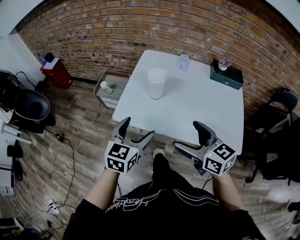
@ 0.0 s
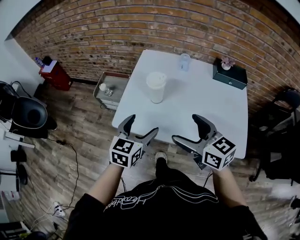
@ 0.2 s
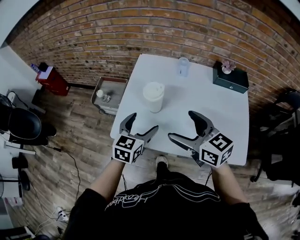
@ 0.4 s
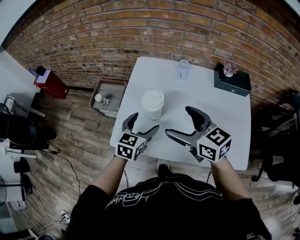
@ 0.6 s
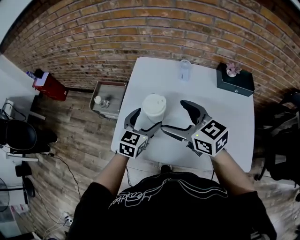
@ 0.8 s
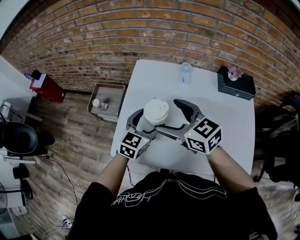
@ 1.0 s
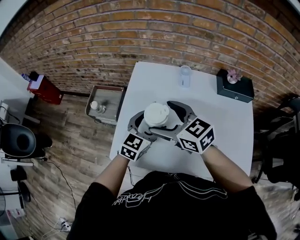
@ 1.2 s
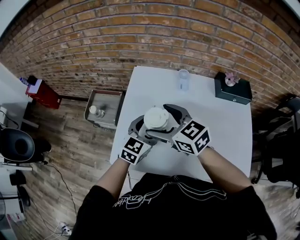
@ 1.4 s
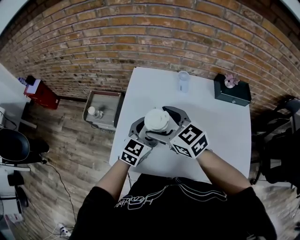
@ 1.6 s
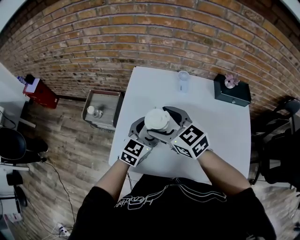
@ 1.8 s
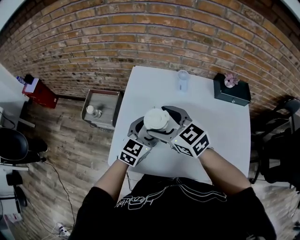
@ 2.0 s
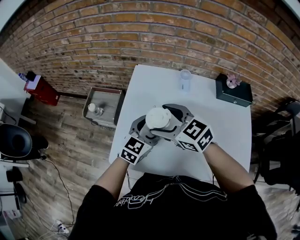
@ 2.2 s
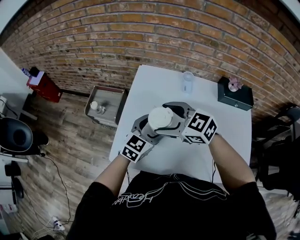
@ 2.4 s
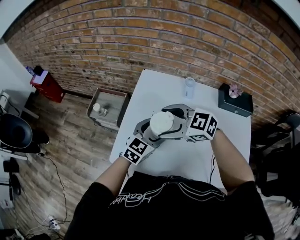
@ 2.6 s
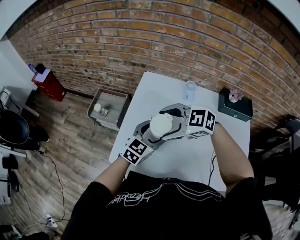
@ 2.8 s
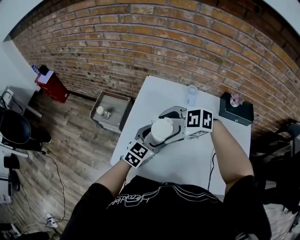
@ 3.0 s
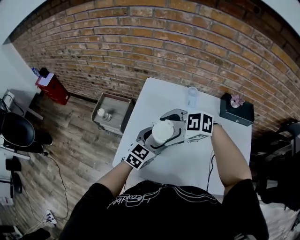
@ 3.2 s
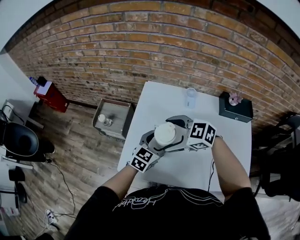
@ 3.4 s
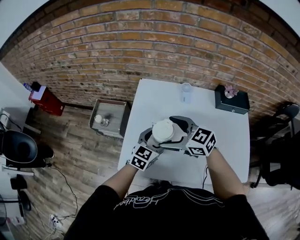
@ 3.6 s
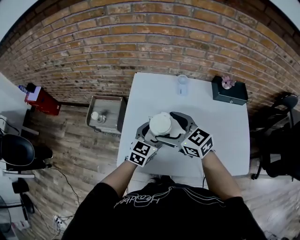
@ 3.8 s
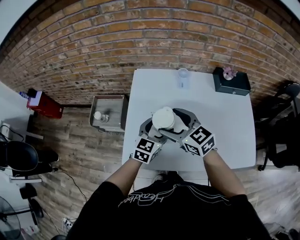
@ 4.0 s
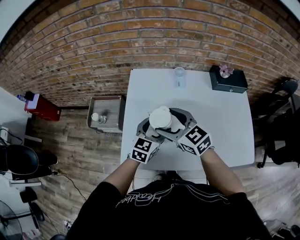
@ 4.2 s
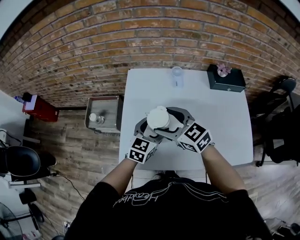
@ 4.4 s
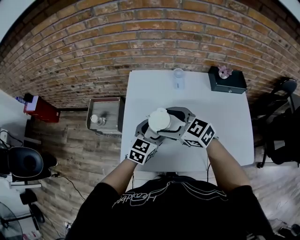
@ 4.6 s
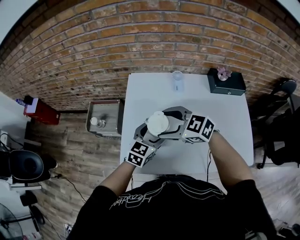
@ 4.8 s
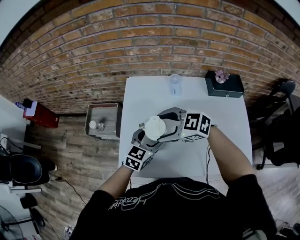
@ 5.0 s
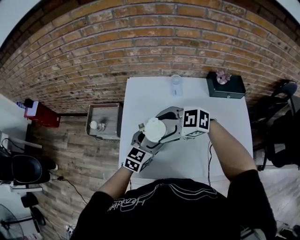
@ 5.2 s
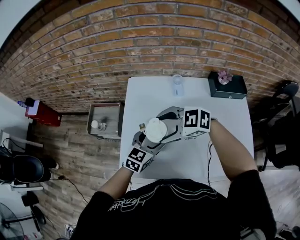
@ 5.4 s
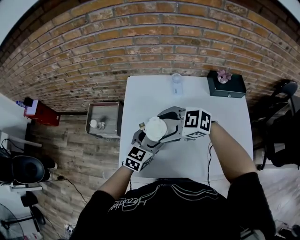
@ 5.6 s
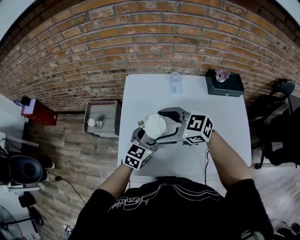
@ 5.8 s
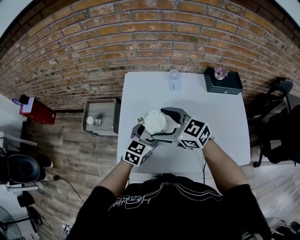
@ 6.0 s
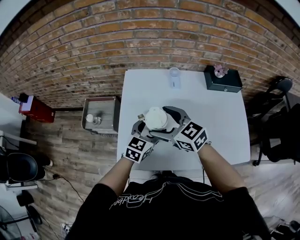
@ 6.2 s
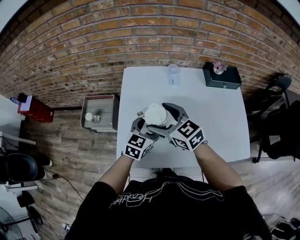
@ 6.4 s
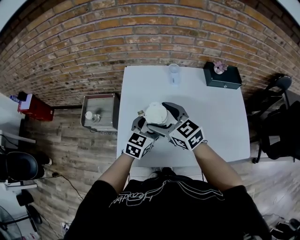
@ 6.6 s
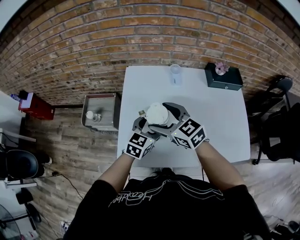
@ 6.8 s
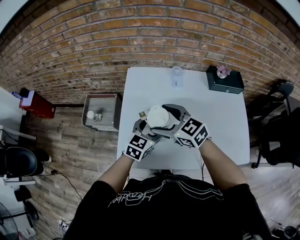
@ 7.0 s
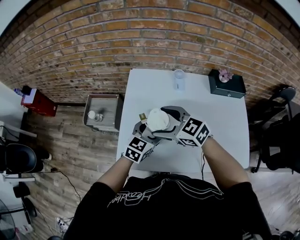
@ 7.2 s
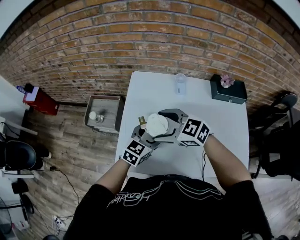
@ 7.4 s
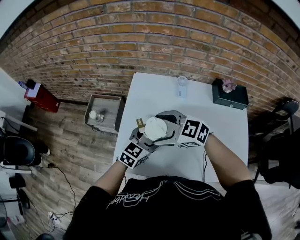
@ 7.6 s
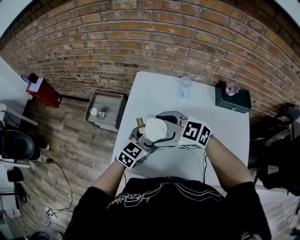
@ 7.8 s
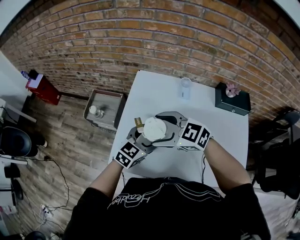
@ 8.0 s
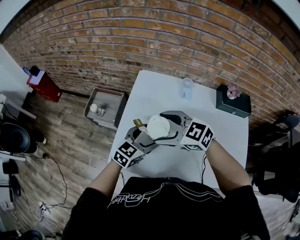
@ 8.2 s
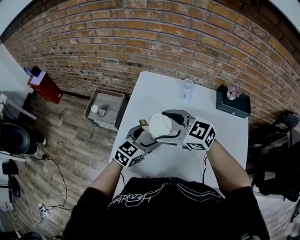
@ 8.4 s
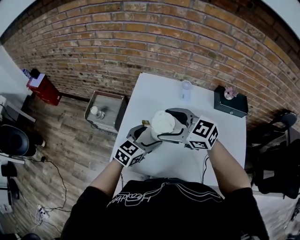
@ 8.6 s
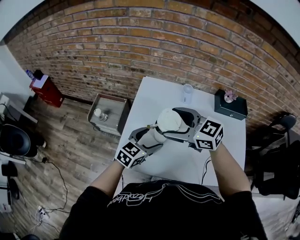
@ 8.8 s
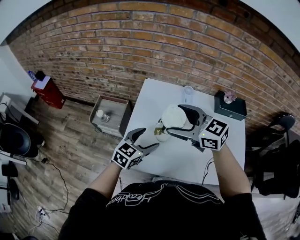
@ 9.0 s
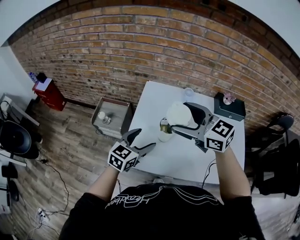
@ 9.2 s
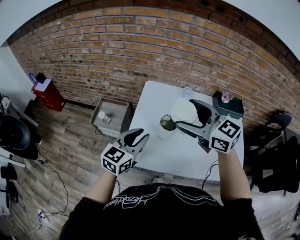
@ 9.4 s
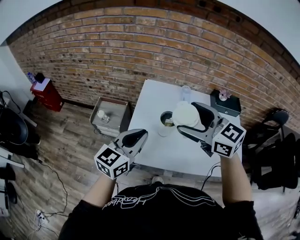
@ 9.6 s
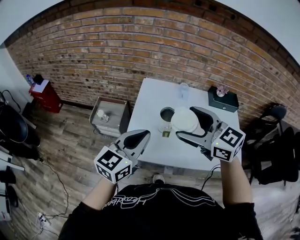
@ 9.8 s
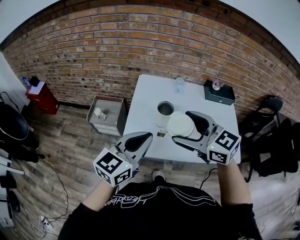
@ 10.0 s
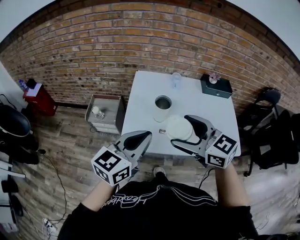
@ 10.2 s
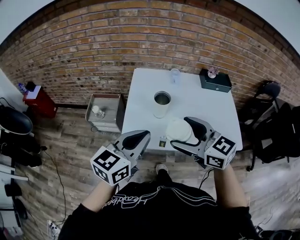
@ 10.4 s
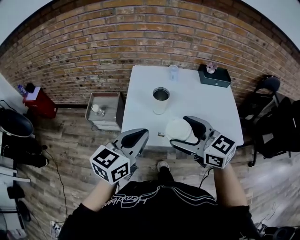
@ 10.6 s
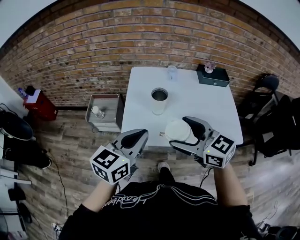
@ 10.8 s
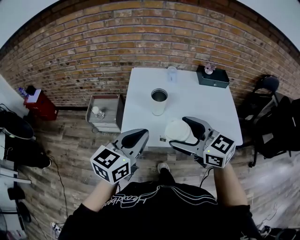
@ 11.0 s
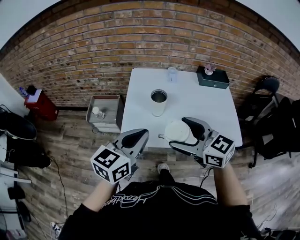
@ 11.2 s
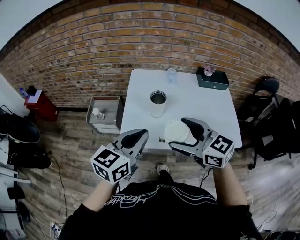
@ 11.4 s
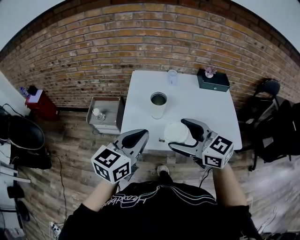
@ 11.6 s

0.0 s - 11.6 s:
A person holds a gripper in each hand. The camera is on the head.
0.0 s - 1.4 s: The two grippers go approximately 25 cm forward.
1.4 s - 2.8 s: The right gripper swivels approximately 40 degrees.
2.8 s - 4.4 s: The right gripper swivels approximately 50 degrees.
4.4 s - 5.8 s: The right gripper rotates about 20 degrees.
7.2 s - 8.8 s: The right gripper heads upward, covering approximately 5 cm.
8.8 s - 10.2 s: The left gripper goes approximately 25 cm upward, backward and to the left, and closes its fingers, while the right gripper is displaced backward and upward by roughly 20 cm.
10.2 s - 11.6 s: The grippers move only a little.

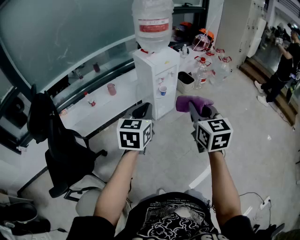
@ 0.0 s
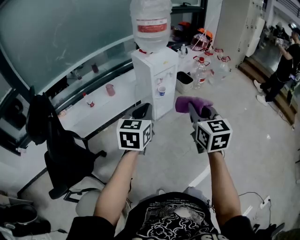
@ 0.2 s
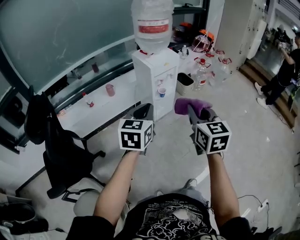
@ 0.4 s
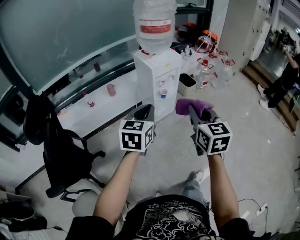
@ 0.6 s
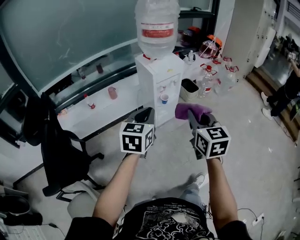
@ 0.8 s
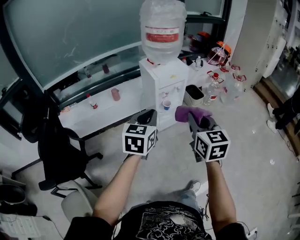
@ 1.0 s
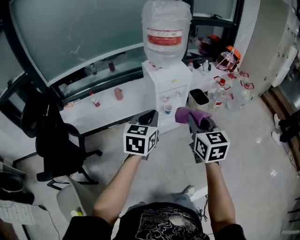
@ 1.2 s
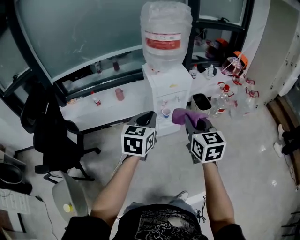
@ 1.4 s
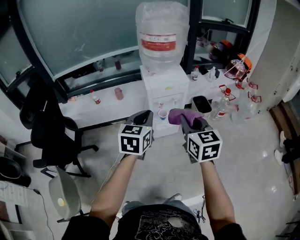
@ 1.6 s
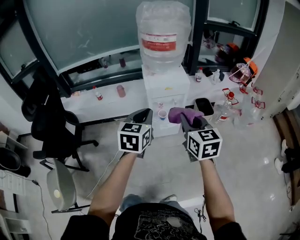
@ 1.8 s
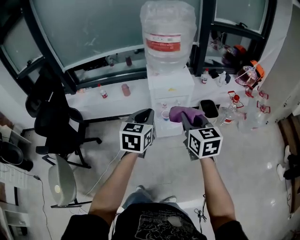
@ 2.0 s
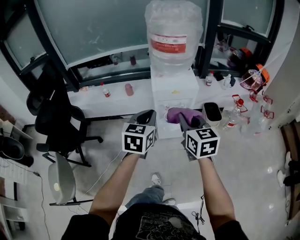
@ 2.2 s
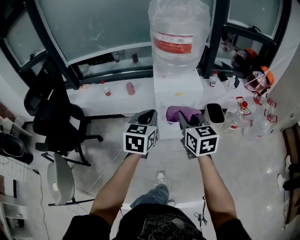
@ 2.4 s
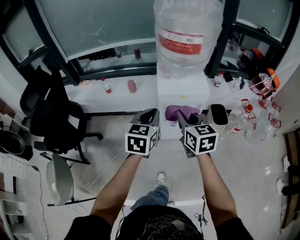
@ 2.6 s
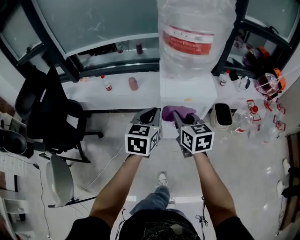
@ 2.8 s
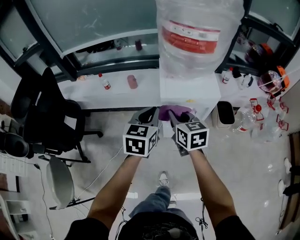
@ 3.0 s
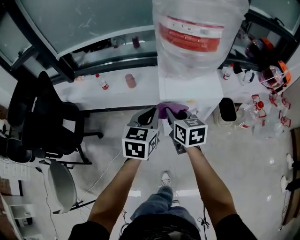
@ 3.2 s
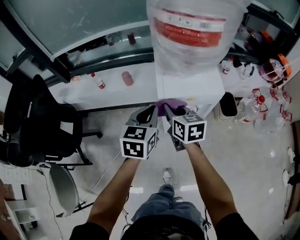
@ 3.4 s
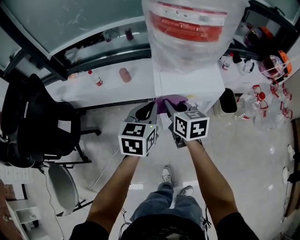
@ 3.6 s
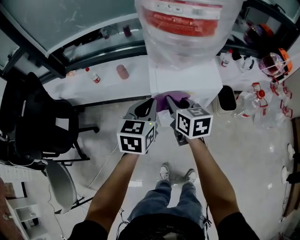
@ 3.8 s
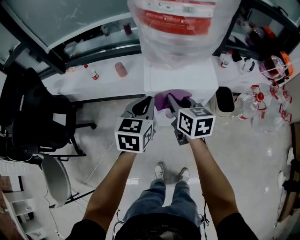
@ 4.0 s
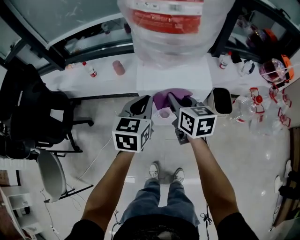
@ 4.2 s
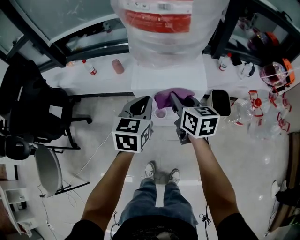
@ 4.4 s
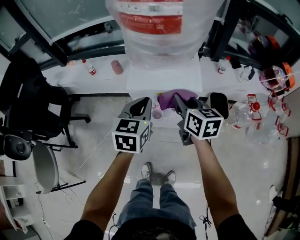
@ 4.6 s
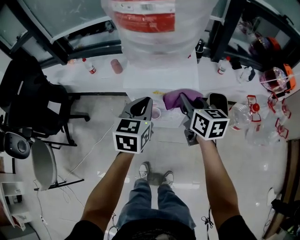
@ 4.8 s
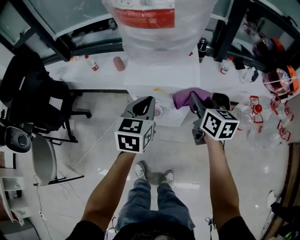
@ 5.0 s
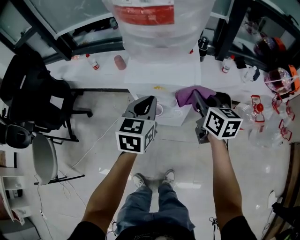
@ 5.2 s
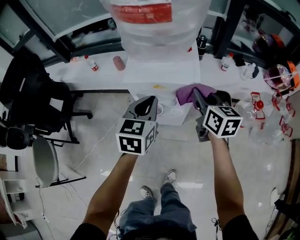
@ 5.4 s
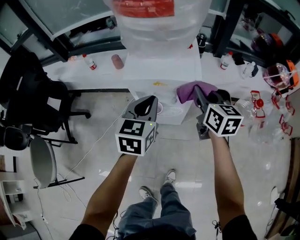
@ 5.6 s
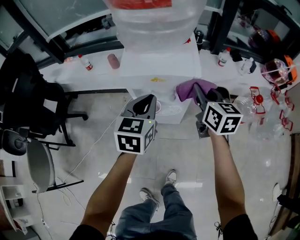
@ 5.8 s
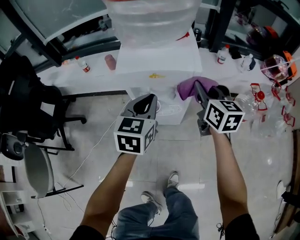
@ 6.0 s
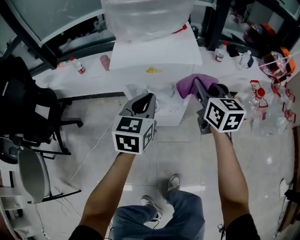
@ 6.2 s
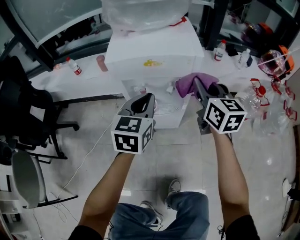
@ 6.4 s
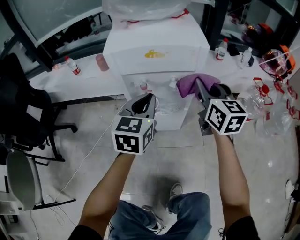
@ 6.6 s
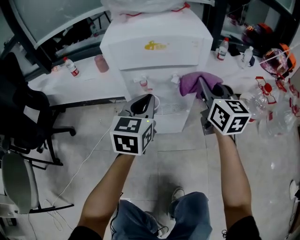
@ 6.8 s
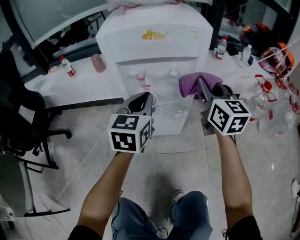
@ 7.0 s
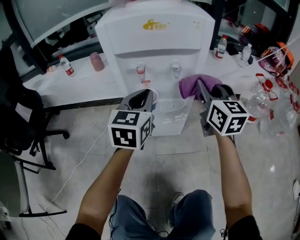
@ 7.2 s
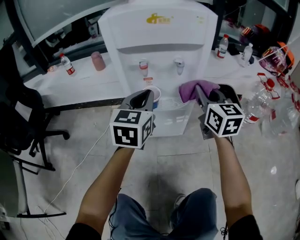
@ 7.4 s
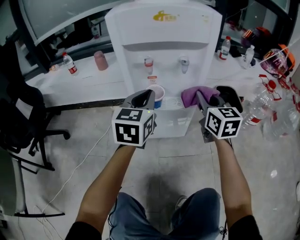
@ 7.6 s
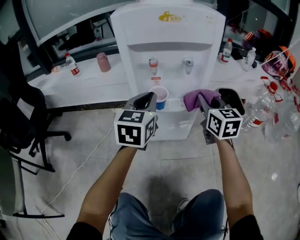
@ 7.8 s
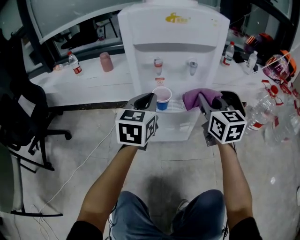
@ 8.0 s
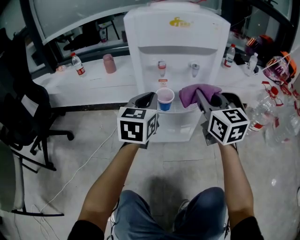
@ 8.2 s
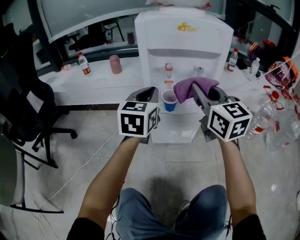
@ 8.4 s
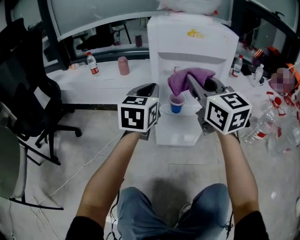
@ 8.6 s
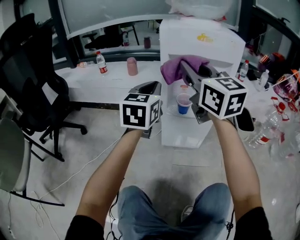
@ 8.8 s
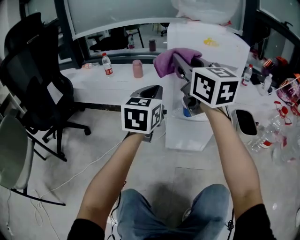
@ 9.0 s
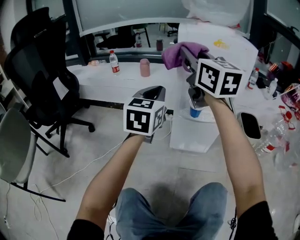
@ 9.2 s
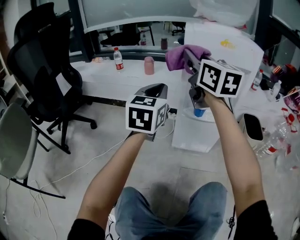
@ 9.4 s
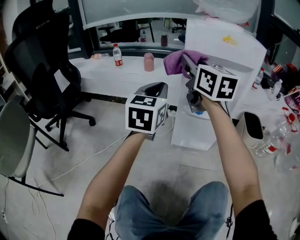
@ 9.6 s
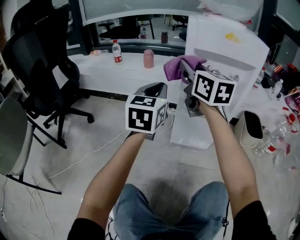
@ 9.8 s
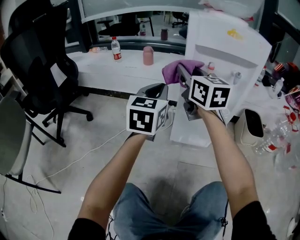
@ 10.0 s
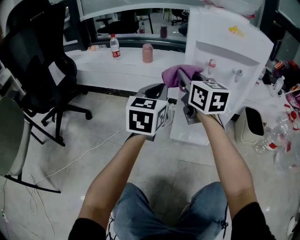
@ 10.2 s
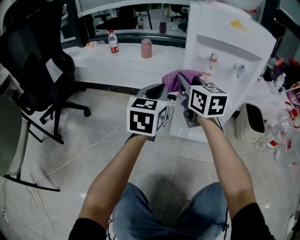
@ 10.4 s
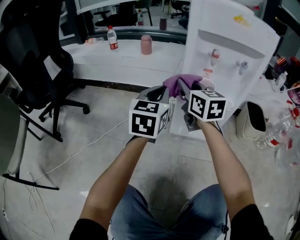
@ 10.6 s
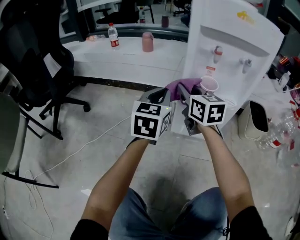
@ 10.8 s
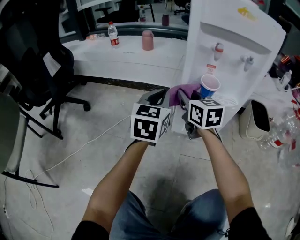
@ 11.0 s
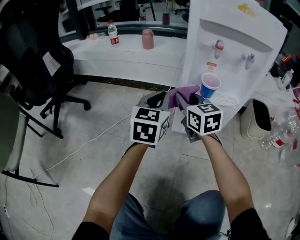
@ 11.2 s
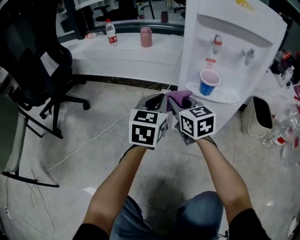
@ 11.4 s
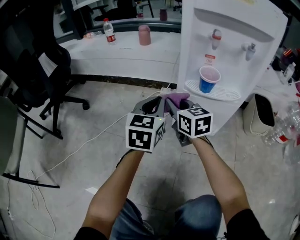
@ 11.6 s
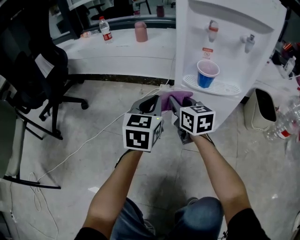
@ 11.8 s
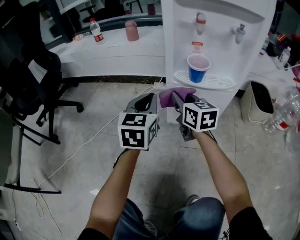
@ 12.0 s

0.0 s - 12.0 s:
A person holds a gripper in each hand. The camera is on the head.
0.0 s - 1.6 s: The right gripper shifts by approximately 25 cm, and rotates about 30 degrees. The left gripper moves roughly 25 cm, and changes its angle by some 20 degrees.
1.6 s - 3.0 s: The two grippers go some 25 cm forward and downward. The right gripper rotates about 20 degrees.
3.0 s - 4.4 s: The two grippers go approximately 10 cm to the right.
4.4 s - 6.0 s: The left gripper heads downward, covering approximately 5 cm; the right gripper heads to the right, covering about 10 cm.
6.0 s - 7.6 s: The two grippers go some 20 cm downward.
7.6 s - 9.0 s: The left gripper is displaced to the left and upward by some 15 cm; the right gripper shifts approximately 35 cm to the left and upward, and swivels roughly 30 degrees.
9.0 s - 10.4 s: The right gripper travels downward by about 20 cm. The left gripper moves downward, roughly 10 cm.
10.4 s - 12.0 s: The grippers both shift downward by some 15 cm.
